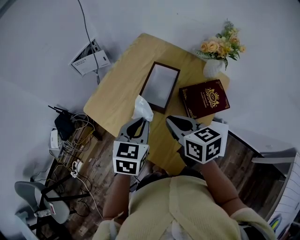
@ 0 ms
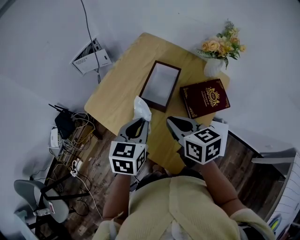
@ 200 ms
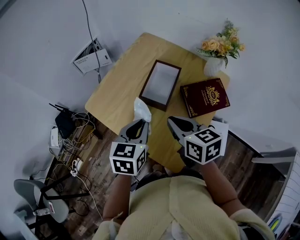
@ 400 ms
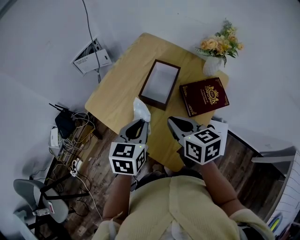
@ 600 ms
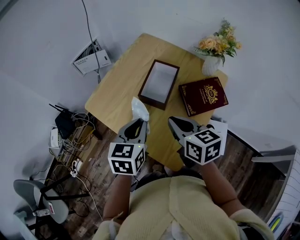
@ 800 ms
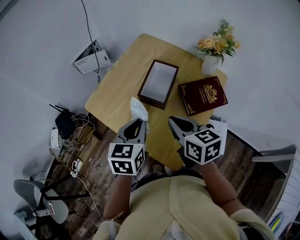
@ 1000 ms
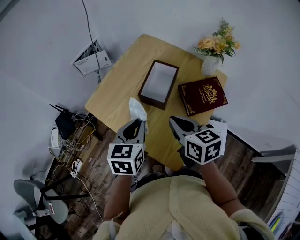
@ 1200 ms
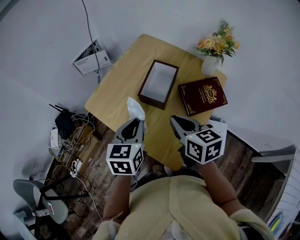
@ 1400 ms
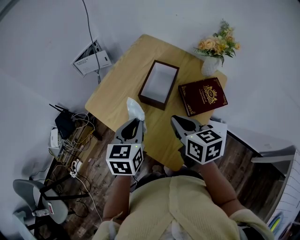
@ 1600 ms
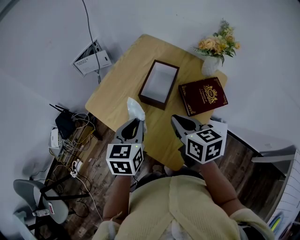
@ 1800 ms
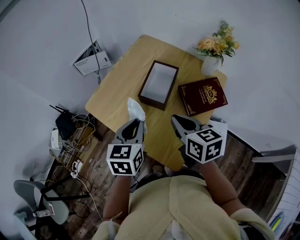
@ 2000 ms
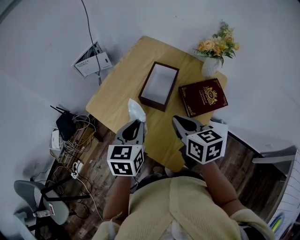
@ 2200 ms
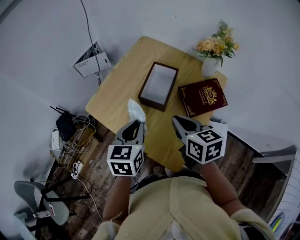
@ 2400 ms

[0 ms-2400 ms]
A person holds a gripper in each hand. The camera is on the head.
0 ms to 2400 ms: The grippers move only a little.

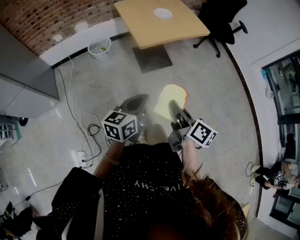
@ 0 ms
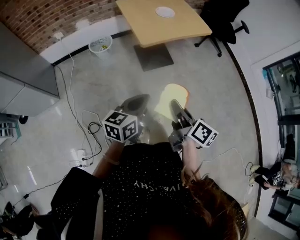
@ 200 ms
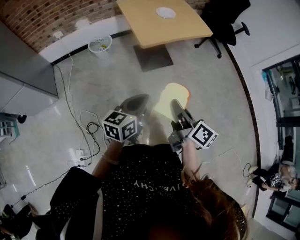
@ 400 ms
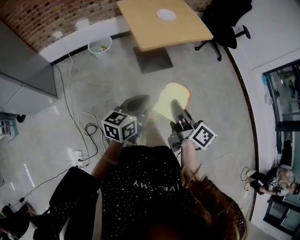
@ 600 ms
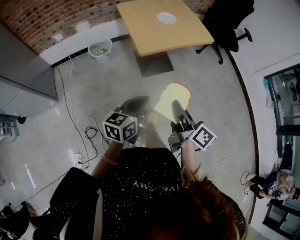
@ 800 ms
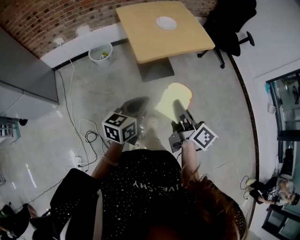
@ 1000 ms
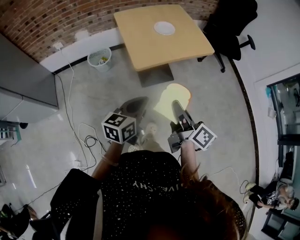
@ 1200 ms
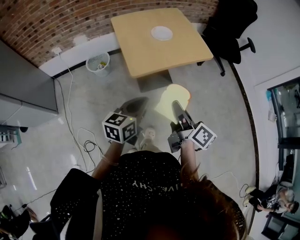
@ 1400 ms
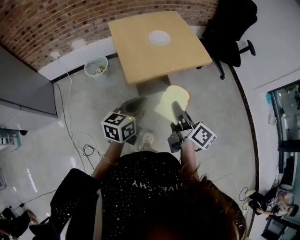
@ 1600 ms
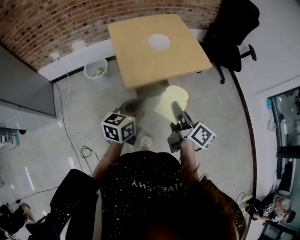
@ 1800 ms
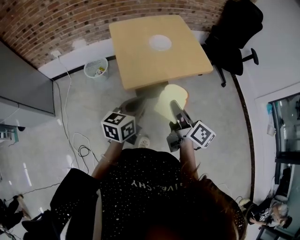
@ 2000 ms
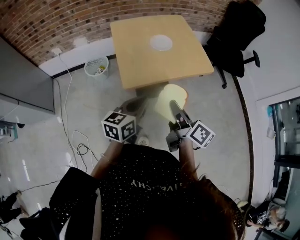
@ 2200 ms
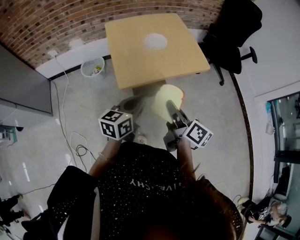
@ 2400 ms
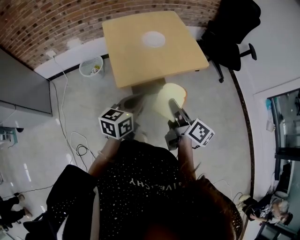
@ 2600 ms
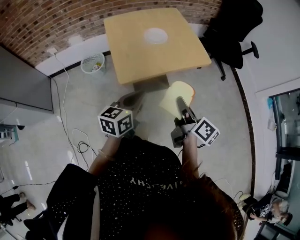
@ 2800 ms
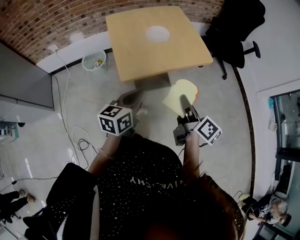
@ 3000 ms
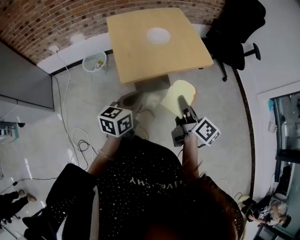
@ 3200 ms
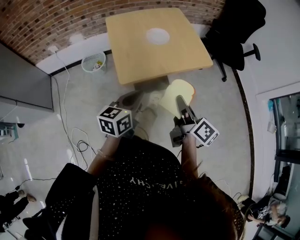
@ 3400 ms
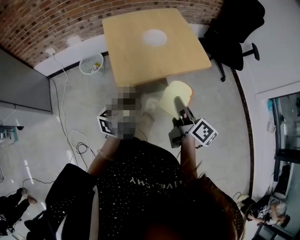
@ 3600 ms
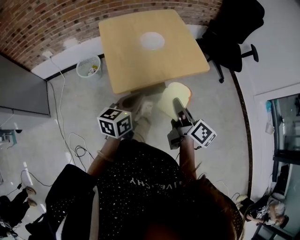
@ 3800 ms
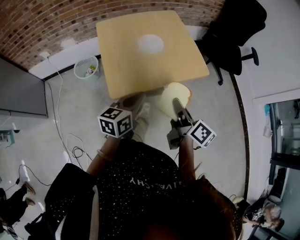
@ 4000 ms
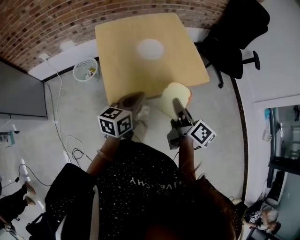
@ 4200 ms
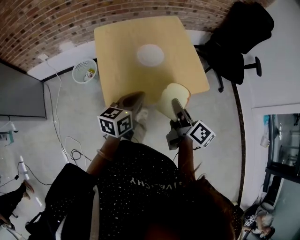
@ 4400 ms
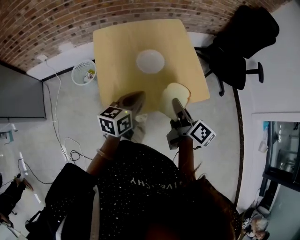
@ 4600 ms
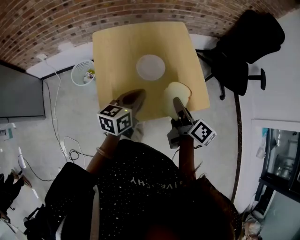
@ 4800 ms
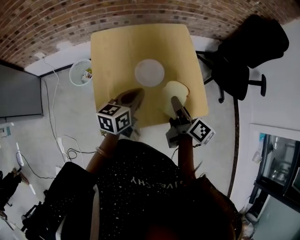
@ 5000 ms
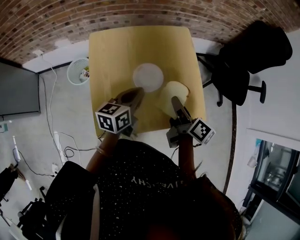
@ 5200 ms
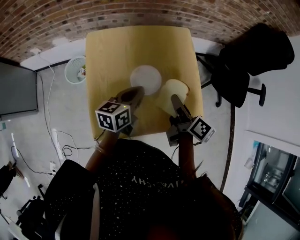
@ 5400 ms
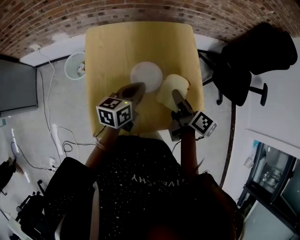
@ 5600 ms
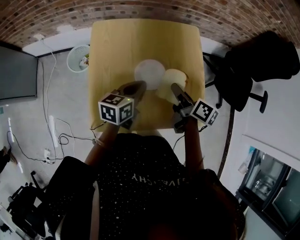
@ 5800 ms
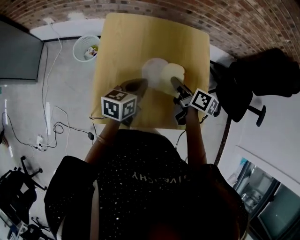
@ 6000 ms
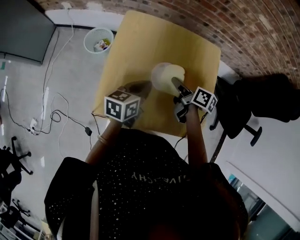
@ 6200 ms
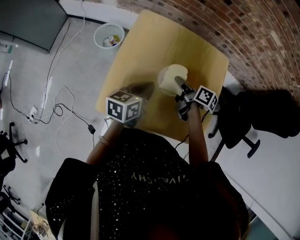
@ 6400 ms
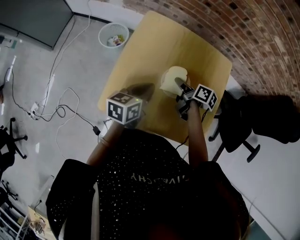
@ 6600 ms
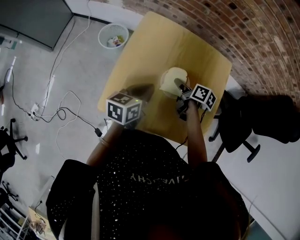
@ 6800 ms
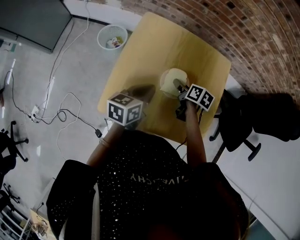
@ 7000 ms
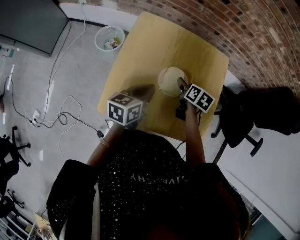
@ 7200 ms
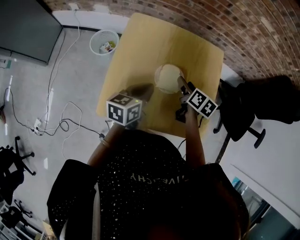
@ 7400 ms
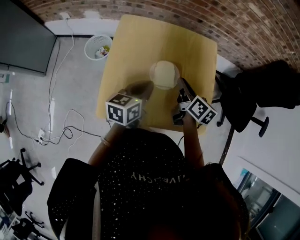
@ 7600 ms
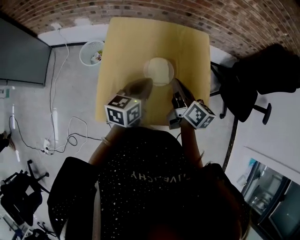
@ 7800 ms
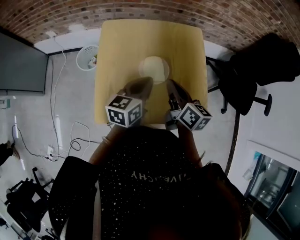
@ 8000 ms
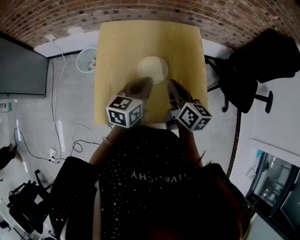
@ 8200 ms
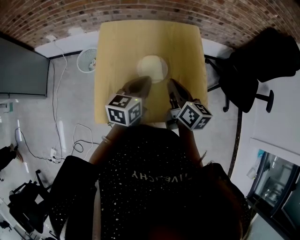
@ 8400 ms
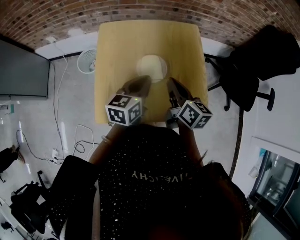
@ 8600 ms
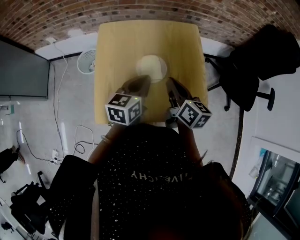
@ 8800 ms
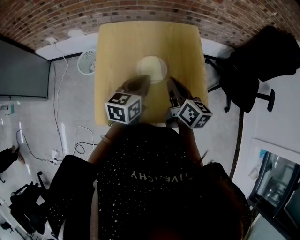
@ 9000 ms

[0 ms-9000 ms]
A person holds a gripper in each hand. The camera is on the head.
0 ms to 1600 ms: Both grippers travel together forward, approximately 25 cm.
1600 ms to 3000 ms: The left gripper is displaced forward by some 5 cm. The right gripper shifts roughly 10 cm to the right and forward.
3000 ms to 4400 ms: The grippers both shift forward by roughly 20 cm.
4400 ms to 6000 ms: The grippers both shift forward by some 25 cm. The right gripper rotates about 40 degrees.
6000 ms to 7600 ms: The right gripper reaches roughly 10 cm downward, then returns, and opens, then closes once more.
7600 ms to 9000 ms: The right gripper goes approximately 5 cm backward; the left gripper is displaced to the right by about 5 cm.

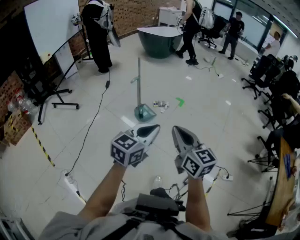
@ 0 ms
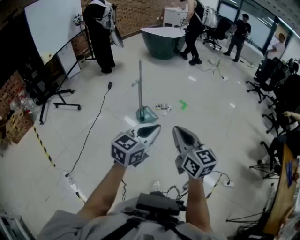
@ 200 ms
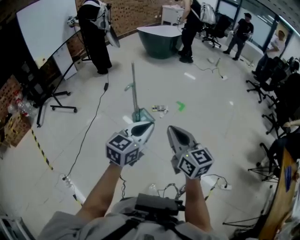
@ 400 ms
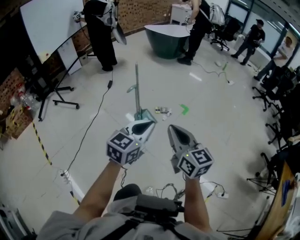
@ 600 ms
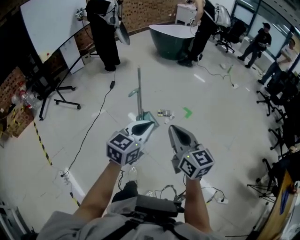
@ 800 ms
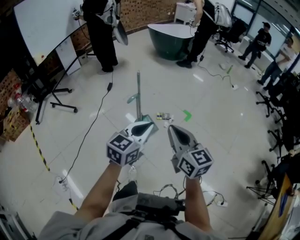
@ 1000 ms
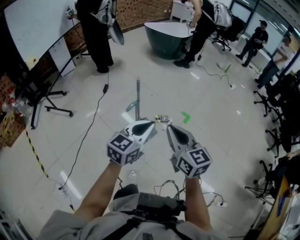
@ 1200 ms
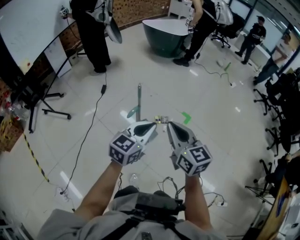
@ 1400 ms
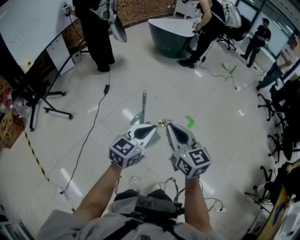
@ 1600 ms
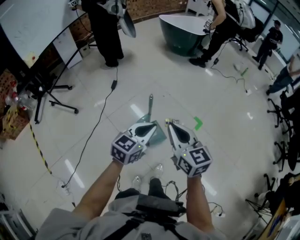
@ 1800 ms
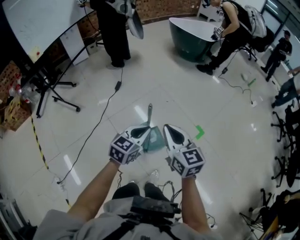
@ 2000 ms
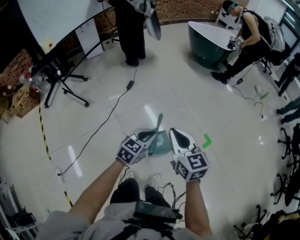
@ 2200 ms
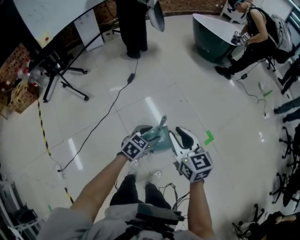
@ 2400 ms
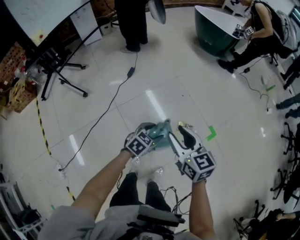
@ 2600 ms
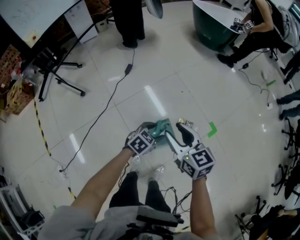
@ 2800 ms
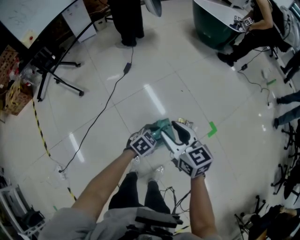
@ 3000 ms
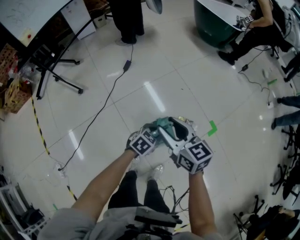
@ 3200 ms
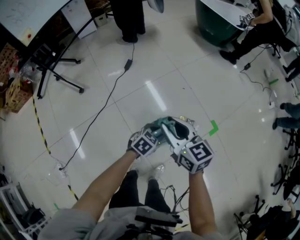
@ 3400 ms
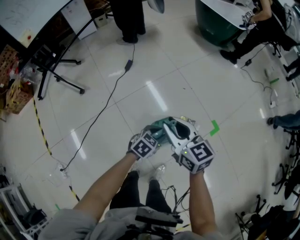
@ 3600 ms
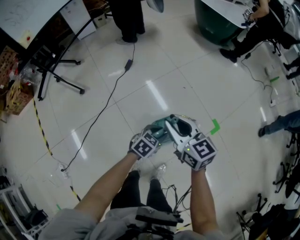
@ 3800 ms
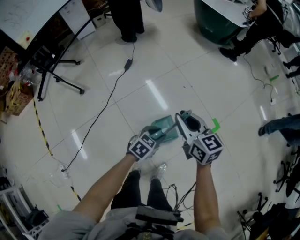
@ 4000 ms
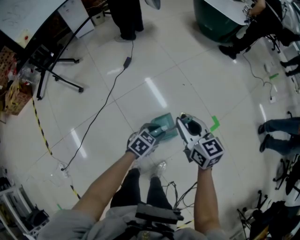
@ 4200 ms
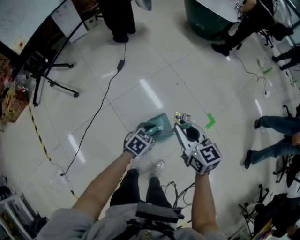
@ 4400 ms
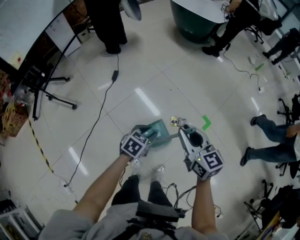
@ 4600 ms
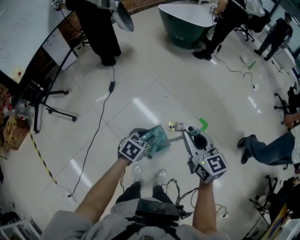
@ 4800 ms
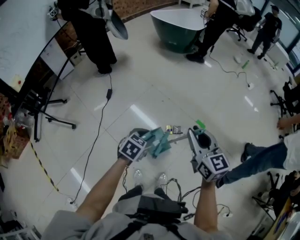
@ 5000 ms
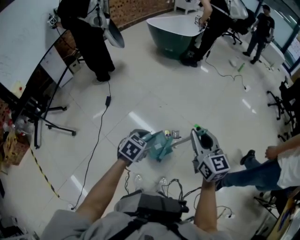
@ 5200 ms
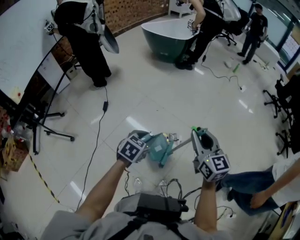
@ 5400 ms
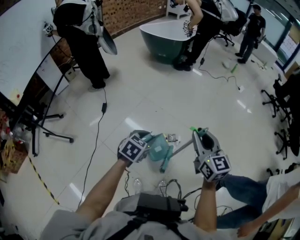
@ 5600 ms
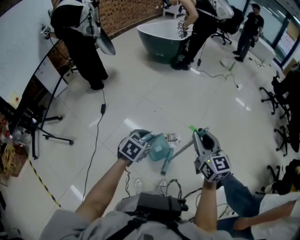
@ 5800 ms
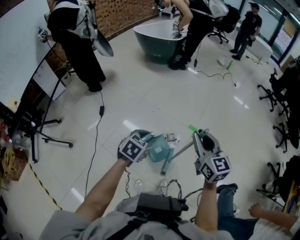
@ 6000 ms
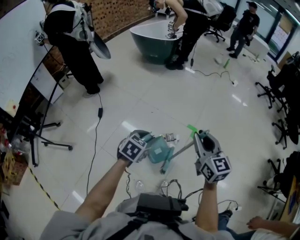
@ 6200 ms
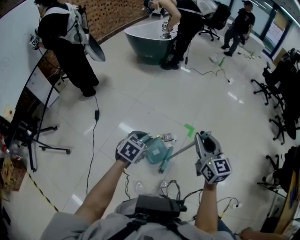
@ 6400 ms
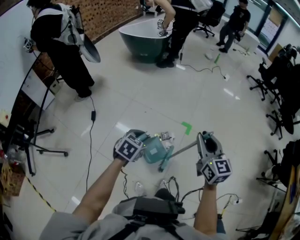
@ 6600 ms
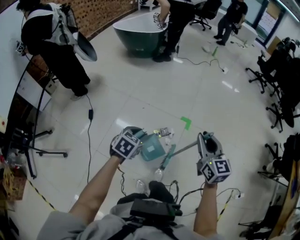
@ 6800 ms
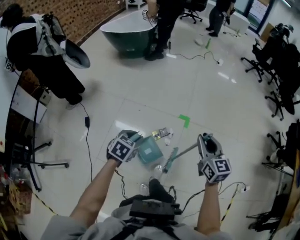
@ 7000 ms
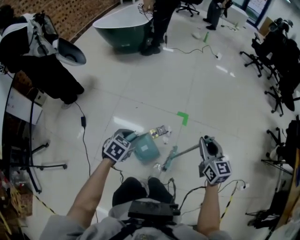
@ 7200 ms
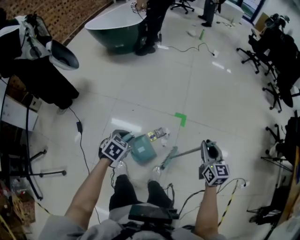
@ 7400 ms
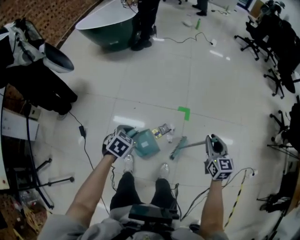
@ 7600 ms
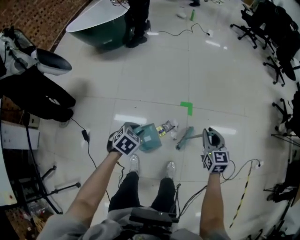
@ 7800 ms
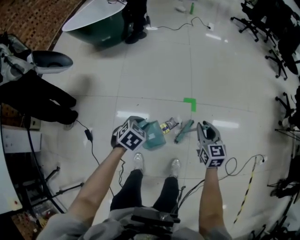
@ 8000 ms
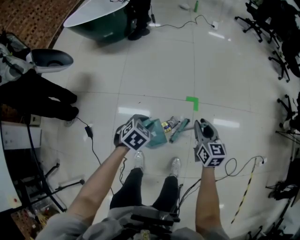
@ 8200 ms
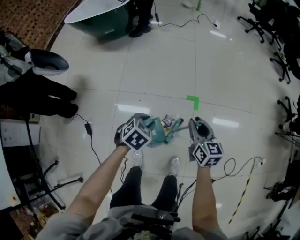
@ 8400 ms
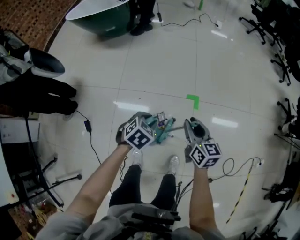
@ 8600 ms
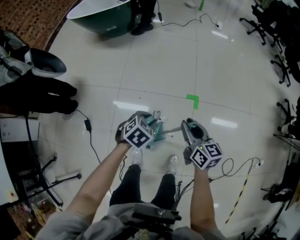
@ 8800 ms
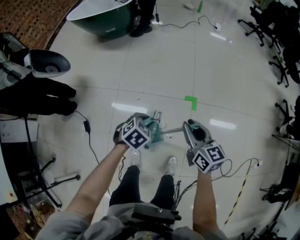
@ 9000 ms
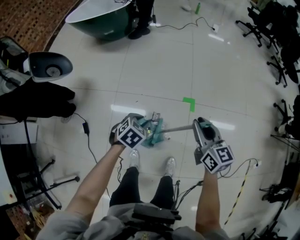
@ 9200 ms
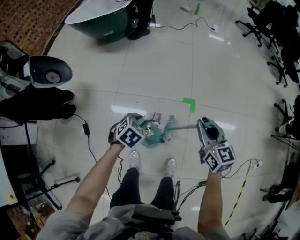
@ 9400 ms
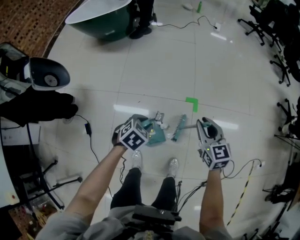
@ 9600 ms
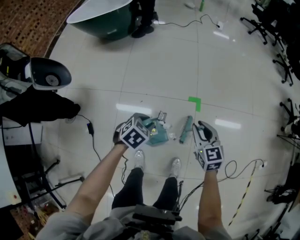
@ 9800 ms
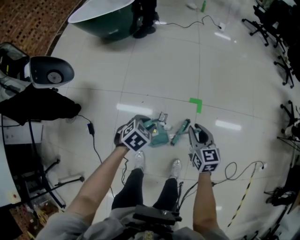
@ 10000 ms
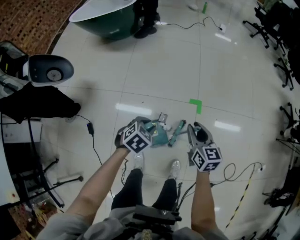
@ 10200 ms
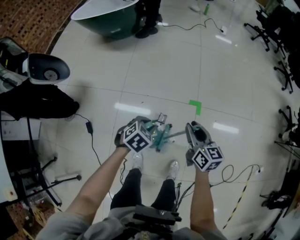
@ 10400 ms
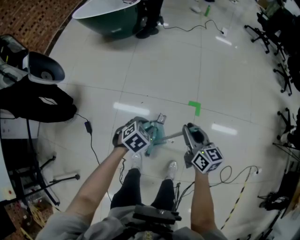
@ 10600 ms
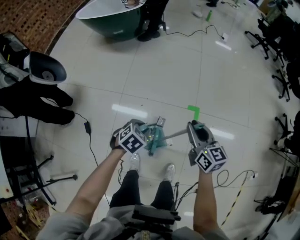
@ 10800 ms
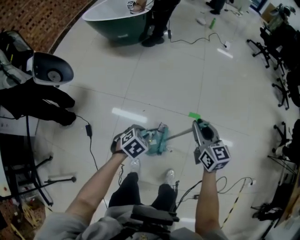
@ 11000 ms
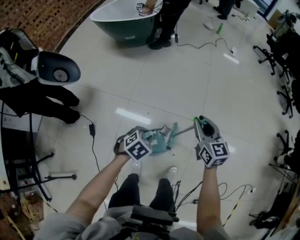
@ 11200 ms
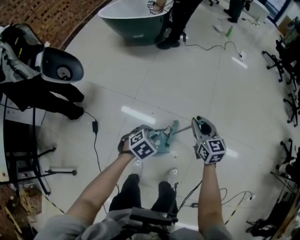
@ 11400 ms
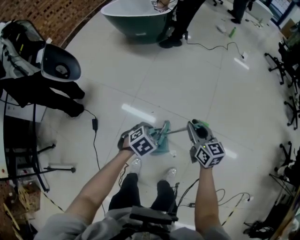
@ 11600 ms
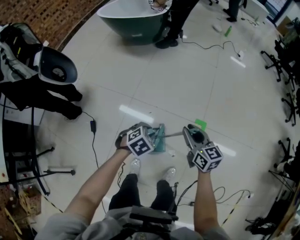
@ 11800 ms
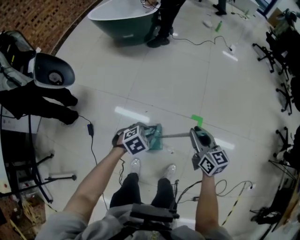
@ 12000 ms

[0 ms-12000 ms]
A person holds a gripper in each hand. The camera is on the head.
0 ms to 1600 ms: The two grippers travel together, forward, about 50 cm.
1600 ms to 3000 ms: The right gripper travels forward, downward and to the left by roughly 25 cm, turns by roughly 30 degrees, and opens; the left gripper is displaced downward and forward by about 35 cm, points its fingers about 40 degrees further downward, and opens.
3000 ms to 4400 ms: The right gripper goes some 5 cm to the right, and closes up; the left gripper closes up.
4400 ms to 6000 ms: The right gripper shifts roughly 20 cm to the right and upward, and rotates about 40 degrees. The left gripper shifts about 20 cm upward, and changes its angle by approximately 20 degrees.
6000 ms to 7600 ms: The left gripper shifts about 25 cm forward and downward, and changes its angle by some 30 degrees. Meanwhile the right gripper travels downward, forward and to the right by roughly 25 cm, and changes its angle by approximately 40 degrees.
7600 ms to 9000 ms: The right gripper travels to the left by about 20 cm, and swivels some 20 degrees, while the left gripper goes roughly 5 cm forward.
9000 ms to 10400 ms: The right gripper changes place by roughly 5 cm.
10400 ms to 12000 ms: The left gripper goes about 5 cm to the left. Meanwhile the right gripper goes forward and returns, about 10 cm each way.
